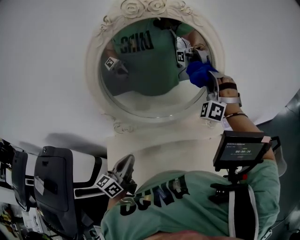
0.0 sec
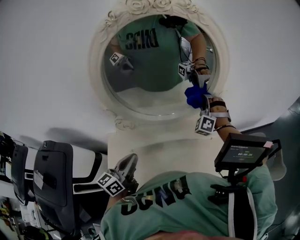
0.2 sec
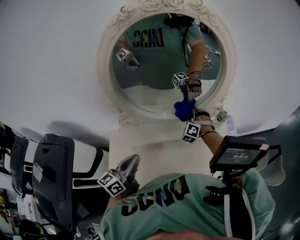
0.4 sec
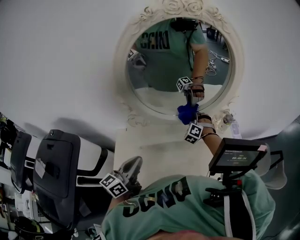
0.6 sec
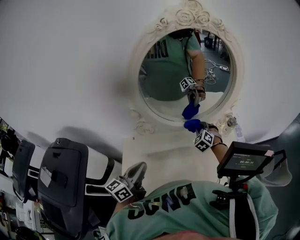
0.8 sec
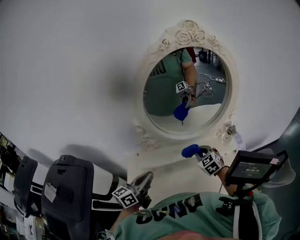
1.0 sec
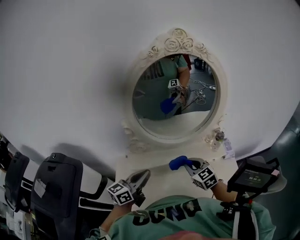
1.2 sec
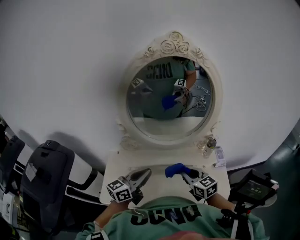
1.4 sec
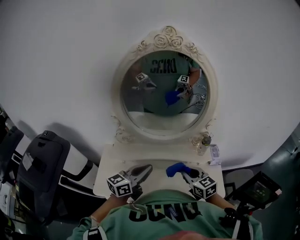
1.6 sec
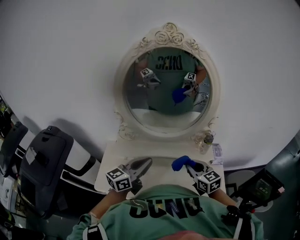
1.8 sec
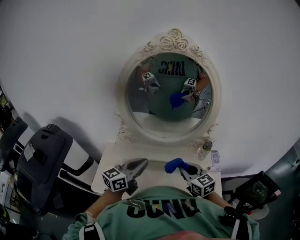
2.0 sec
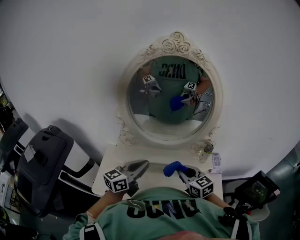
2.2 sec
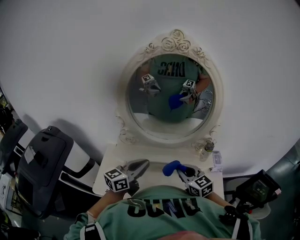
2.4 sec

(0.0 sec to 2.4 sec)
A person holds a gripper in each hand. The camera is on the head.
0.0 sec - 1.2 sec: The left gripper changes place by approximately 5 cm.
1.2 sec - 2.4 sec: The left gripper changes place by roughly 10 cm.

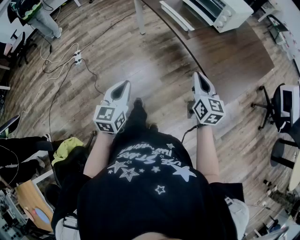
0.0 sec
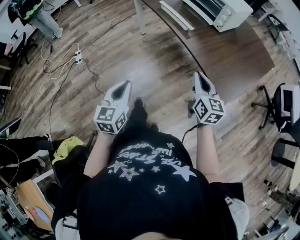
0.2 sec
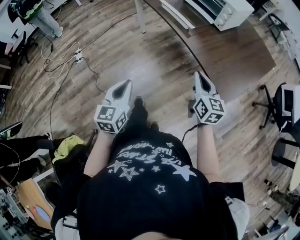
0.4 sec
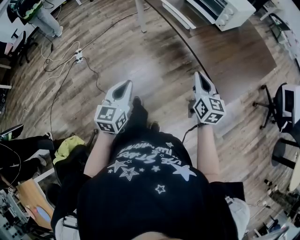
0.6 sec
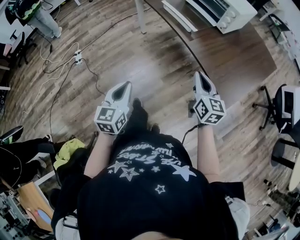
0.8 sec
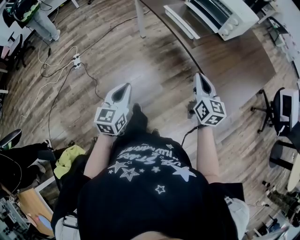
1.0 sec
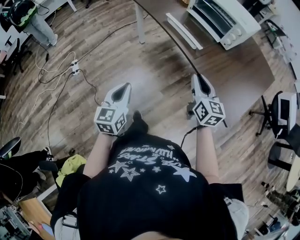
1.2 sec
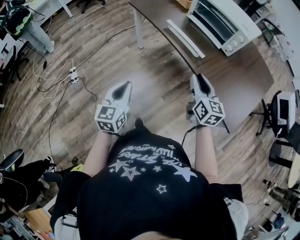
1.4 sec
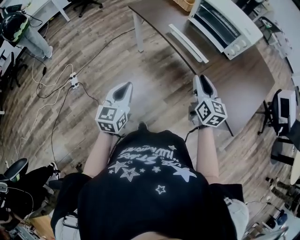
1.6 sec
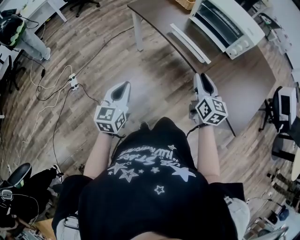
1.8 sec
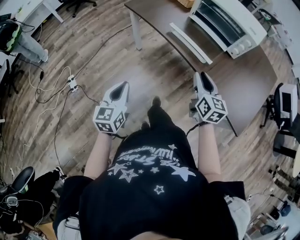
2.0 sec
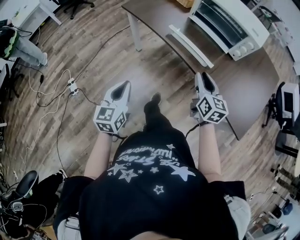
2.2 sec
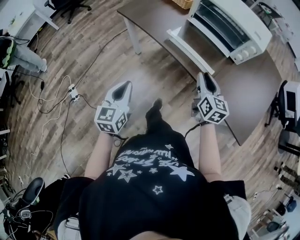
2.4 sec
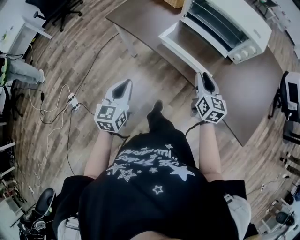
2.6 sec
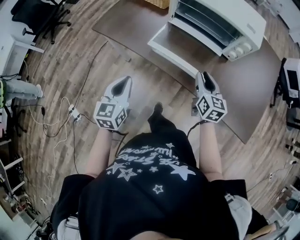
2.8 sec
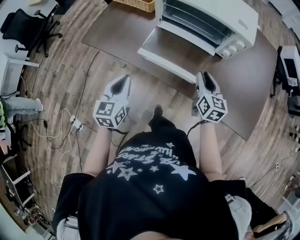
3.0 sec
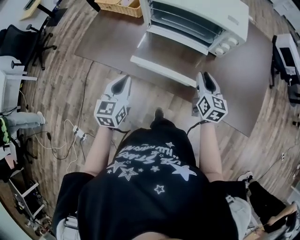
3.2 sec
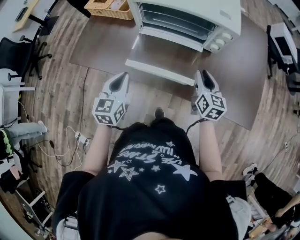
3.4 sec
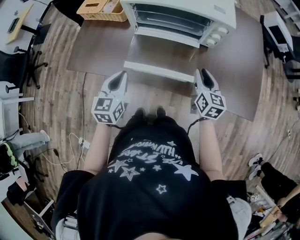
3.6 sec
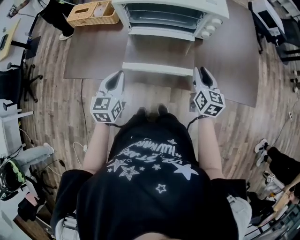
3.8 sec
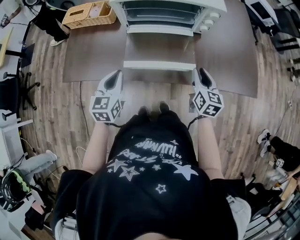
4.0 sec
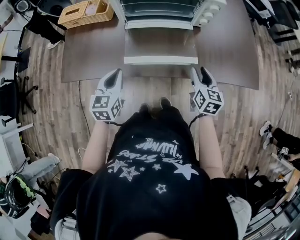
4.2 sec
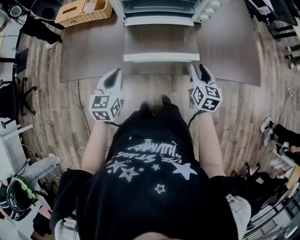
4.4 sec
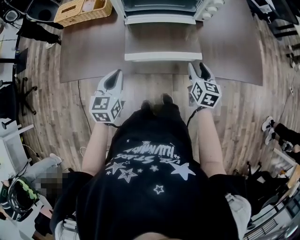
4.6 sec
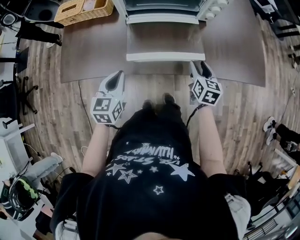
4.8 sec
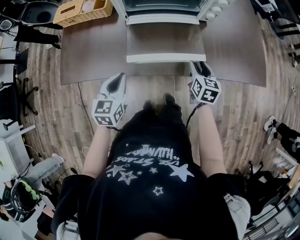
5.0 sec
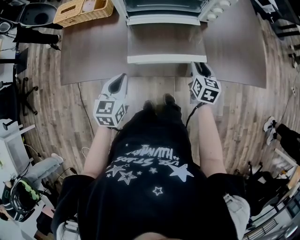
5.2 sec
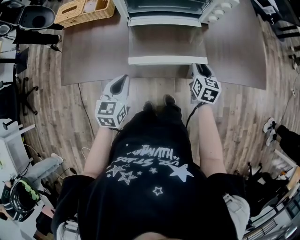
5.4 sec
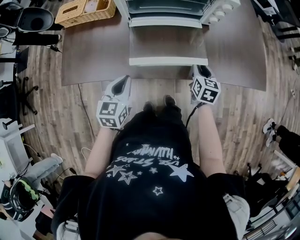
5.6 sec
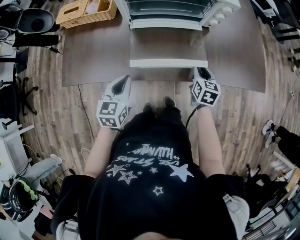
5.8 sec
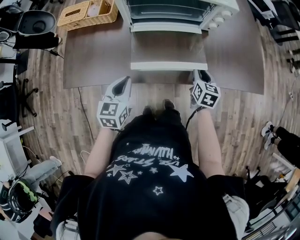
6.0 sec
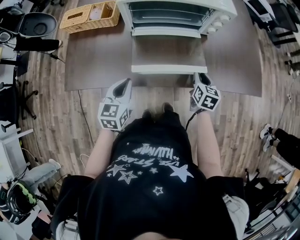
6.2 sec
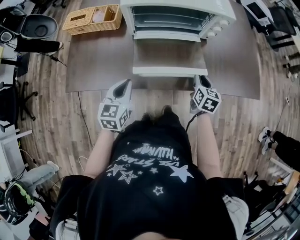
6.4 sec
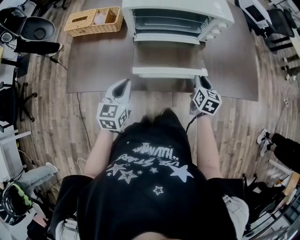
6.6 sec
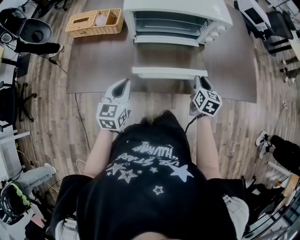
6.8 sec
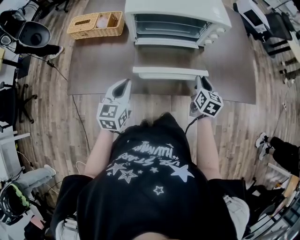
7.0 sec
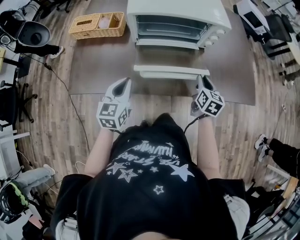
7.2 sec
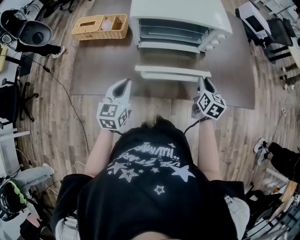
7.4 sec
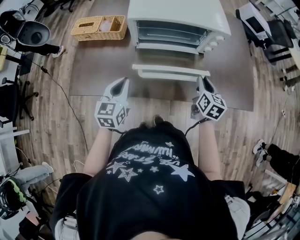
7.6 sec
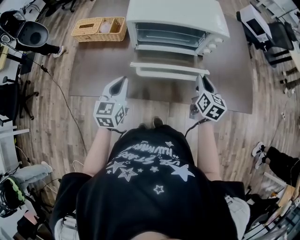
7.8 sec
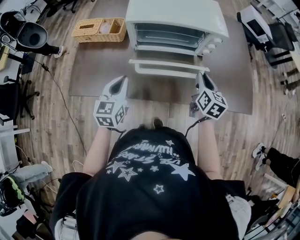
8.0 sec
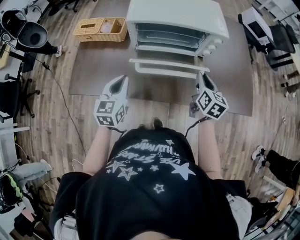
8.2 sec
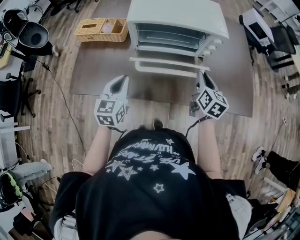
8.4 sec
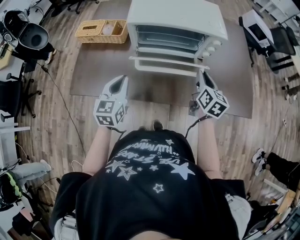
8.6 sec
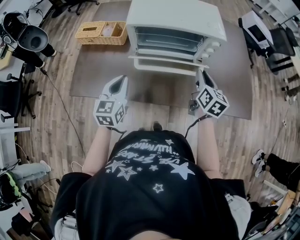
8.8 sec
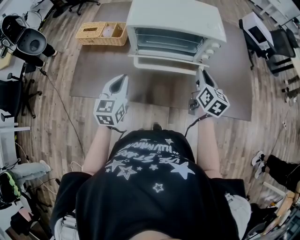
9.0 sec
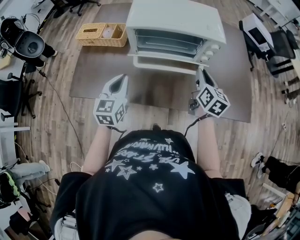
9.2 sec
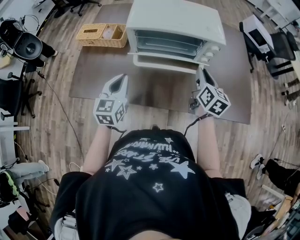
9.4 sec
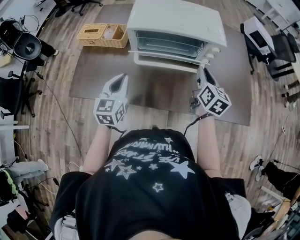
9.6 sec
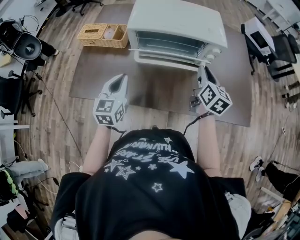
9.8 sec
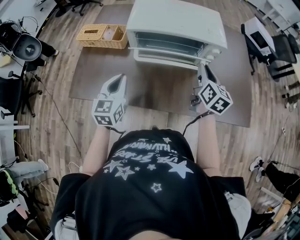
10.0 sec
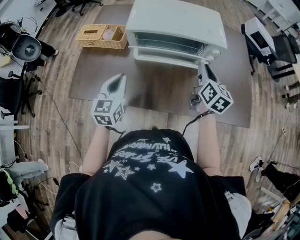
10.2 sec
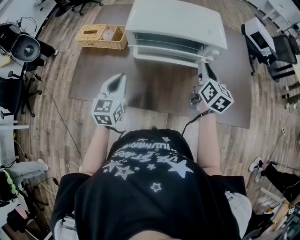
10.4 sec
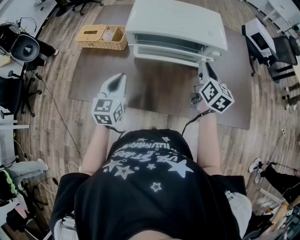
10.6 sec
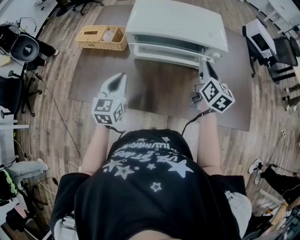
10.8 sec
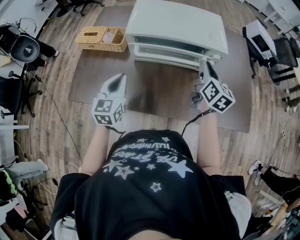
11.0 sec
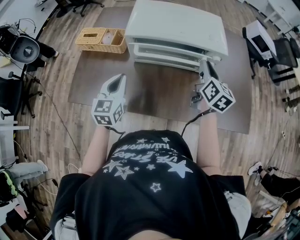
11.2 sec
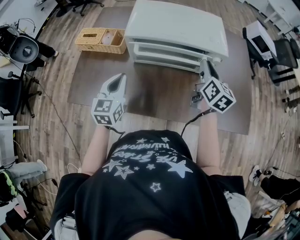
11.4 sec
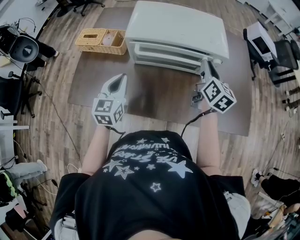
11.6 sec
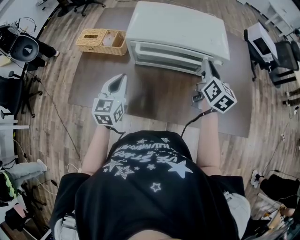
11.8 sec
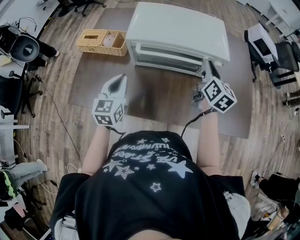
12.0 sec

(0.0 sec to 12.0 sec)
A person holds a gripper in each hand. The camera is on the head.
0.0 sec - 1.6 sec: Both grippers move forward and to the left, approximately 25 cm. The right gripper opens.
1.6 sec - 3.0 sec: The right gripper moves forward, roughly 25 cm, and rotates about 30 degrees; the left gripper travels forward by about 35 cm, and changes its angle by some 20 degrees.
3.0 sec - 4.4 sec: The right gripper ends up some 10 cm from where it was, and changes its angle by about 30 degrees. The left gripper changes place by roughly 10 cm, and changes its angle by some 30 degrees.
4.4 sec - 6.0 sec: The right gripper shifts by roughly 5 cm.
6.0 sec - 7.6 sec: The right gripper shifts about 10 cm upward. Meanwhile the left gripper goes about 5 cm upward.
7.6 sec - 9.0 sec: The right gripper travels upward by some 5 cm.
9.0 sec - 10.4 sec: The right gripper heads forward, covering about 5 cm.
10.4 sec - 12.0 sec: The right gripper heads forward, covering about 5 cm.

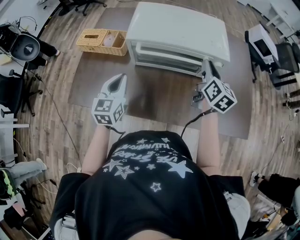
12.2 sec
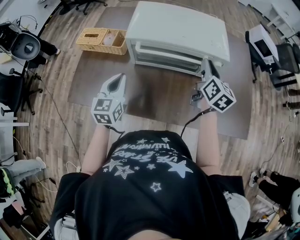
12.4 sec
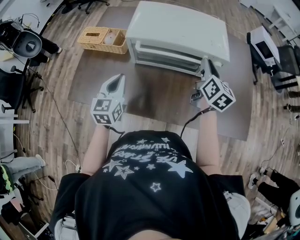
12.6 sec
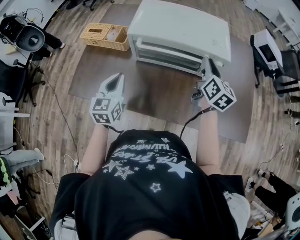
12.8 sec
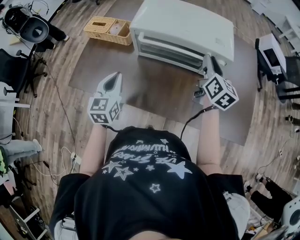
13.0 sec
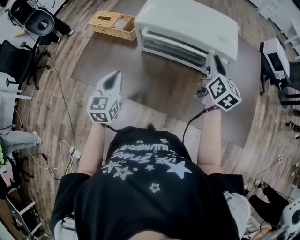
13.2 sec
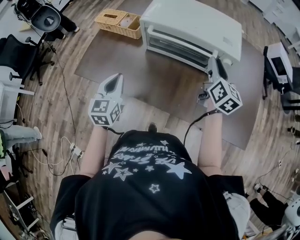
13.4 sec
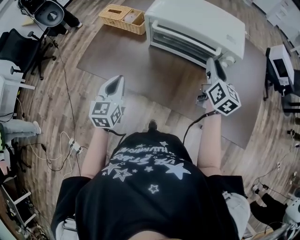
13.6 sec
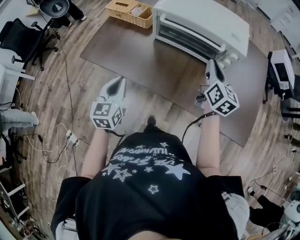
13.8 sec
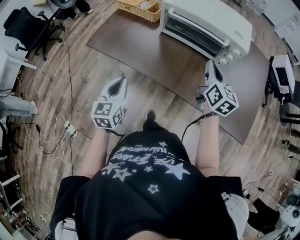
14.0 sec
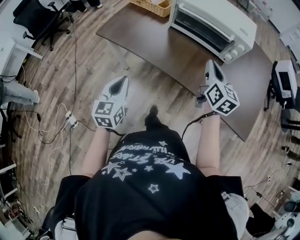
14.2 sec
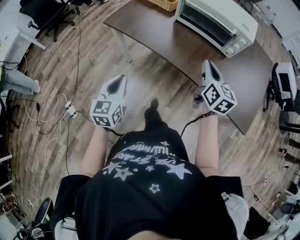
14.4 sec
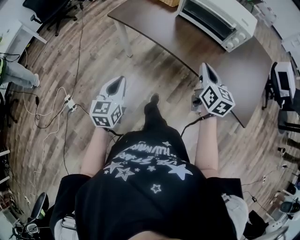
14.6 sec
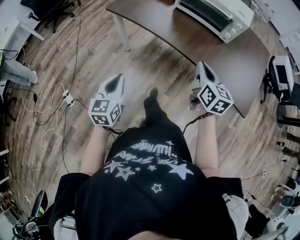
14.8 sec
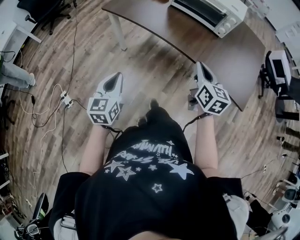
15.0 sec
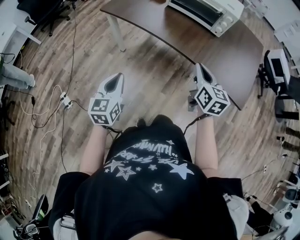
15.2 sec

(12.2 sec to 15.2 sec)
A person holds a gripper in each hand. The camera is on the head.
12.2 sec - 13.8 sec: The left gripper shifts roughly 20 cm backward. The right gripper moves backward, roughly 10 cm.
13.8 sec - 15.2 sec: Both grippers travel together backward, roughly 35 cm.

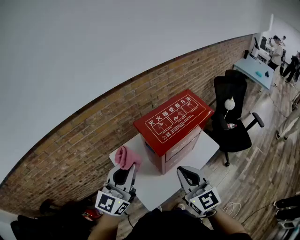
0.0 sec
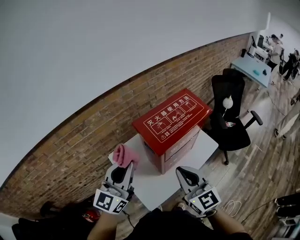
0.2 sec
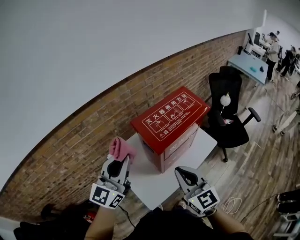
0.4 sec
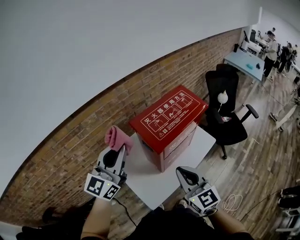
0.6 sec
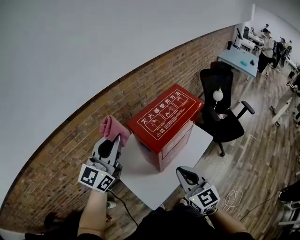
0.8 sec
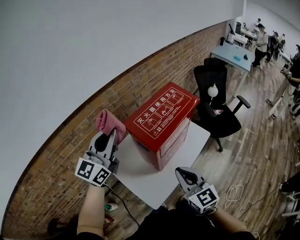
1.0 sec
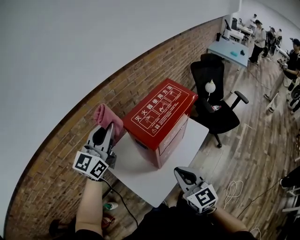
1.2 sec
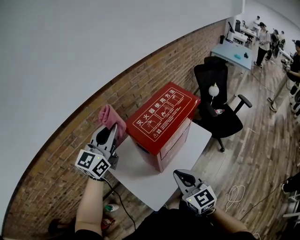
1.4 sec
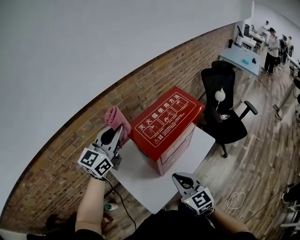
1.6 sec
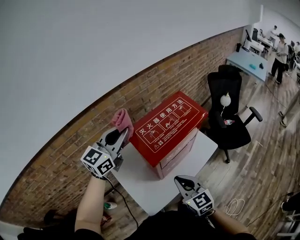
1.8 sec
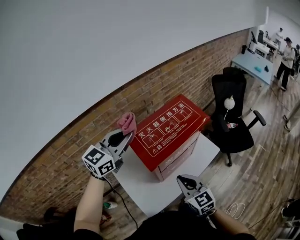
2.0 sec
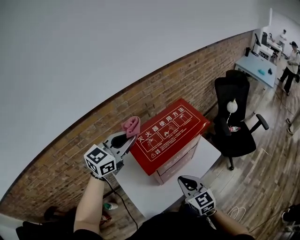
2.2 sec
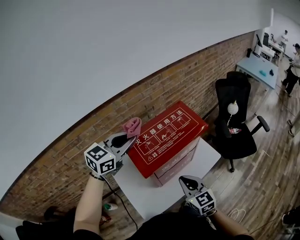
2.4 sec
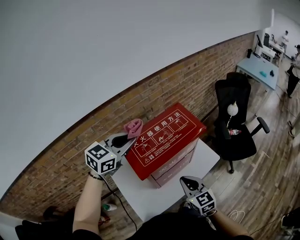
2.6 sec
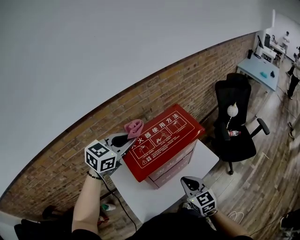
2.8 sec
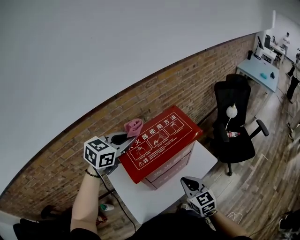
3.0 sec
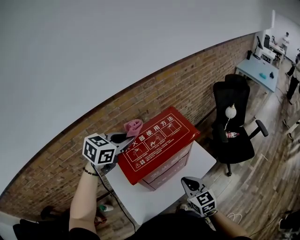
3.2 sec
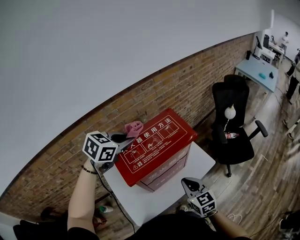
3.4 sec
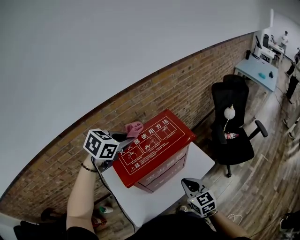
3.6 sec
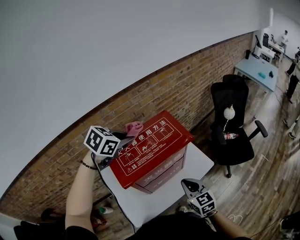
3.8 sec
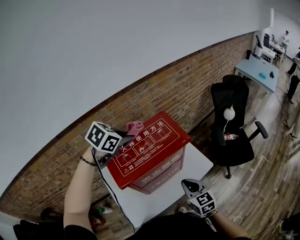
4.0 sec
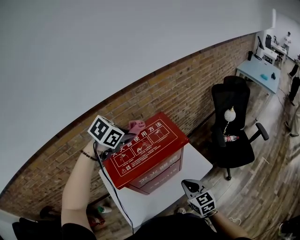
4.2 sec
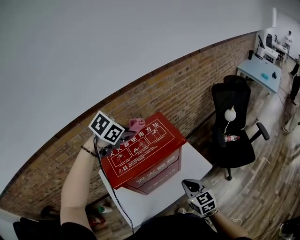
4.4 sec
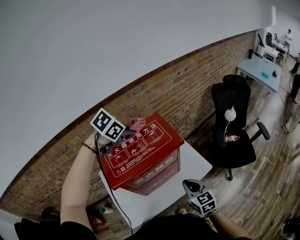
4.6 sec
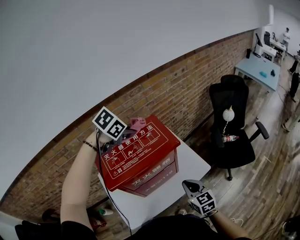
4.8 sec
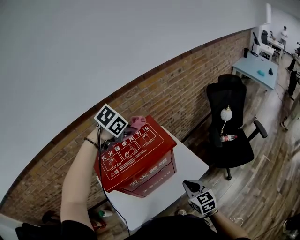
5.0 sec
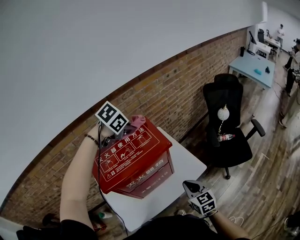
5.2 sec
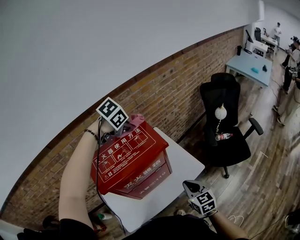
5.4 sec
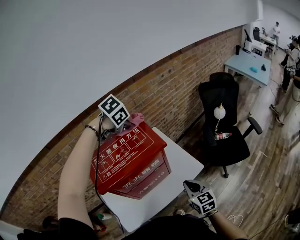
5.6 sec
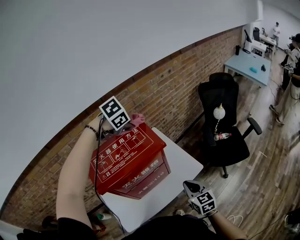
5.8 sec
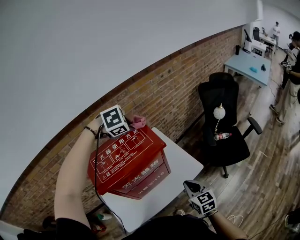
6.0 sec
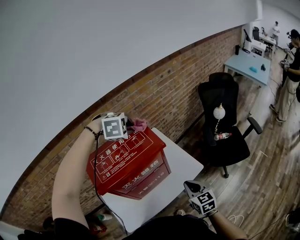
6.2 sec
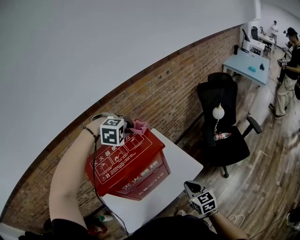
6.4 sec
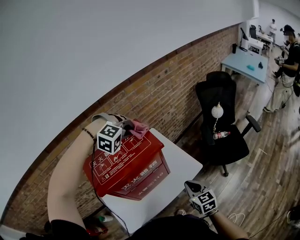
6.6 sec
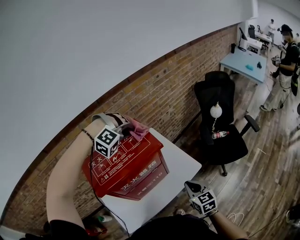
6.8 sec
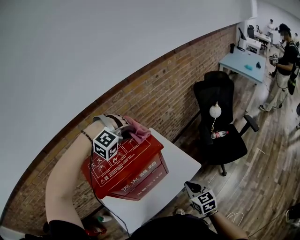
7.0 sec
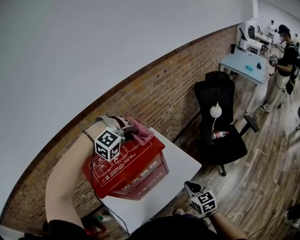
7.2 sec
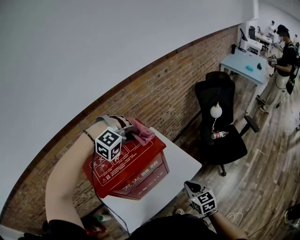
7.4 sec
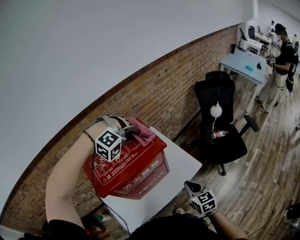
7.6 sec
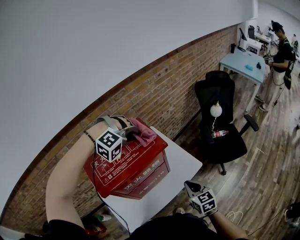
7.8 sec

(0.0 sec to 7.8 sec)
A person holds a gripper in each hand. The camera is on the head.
0.0 sec - 1.6 sec: The right gripper goes roughly 10 cm downward; the left gripper travels forward by approximately 15 cm.
1.6 sec - 3.2 sec: The two grippers go approximately 15 cm to the right and forward. The left gripper points its fingers some 40 degrees further downward.
3.2 sec - 4.6 sec: The left gripper is displaced forward and to the right by some 10 cm, and swivels about 30 degrees. Meanwhile the right gripper travels to the right by approximately 10 cm.
4.6 sec - 6.2 sec: Both grippers move to the right, approximately 5 cm. The left gripper rotates around the line of its fingers by about 50 degrees, clockwise from behind.
6.2 sec - 7.8 sec: The left gripper changes place by about 5 cm, and rotates around the line of its fingers by approximately 40 degrees, clockwise from behind.
